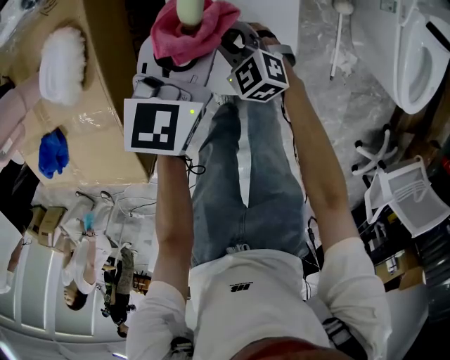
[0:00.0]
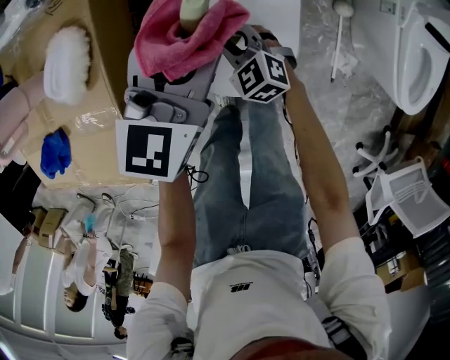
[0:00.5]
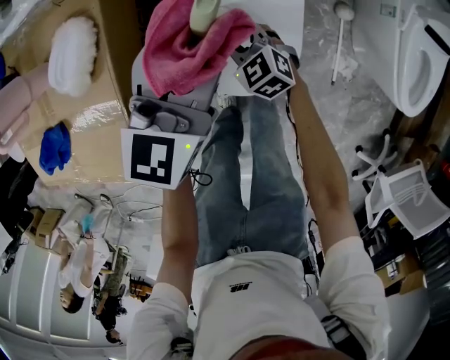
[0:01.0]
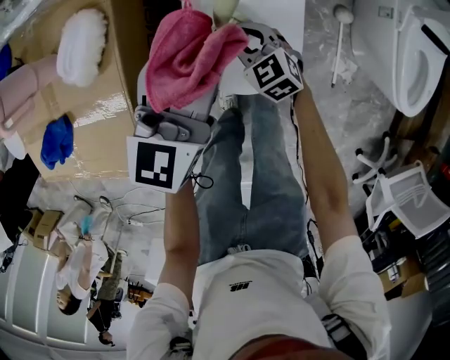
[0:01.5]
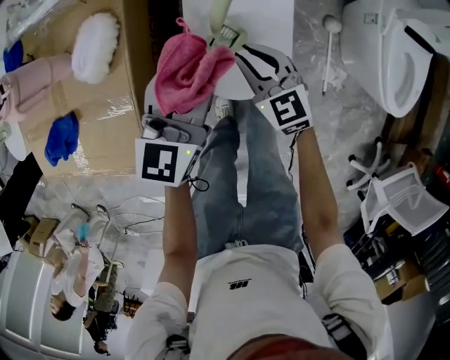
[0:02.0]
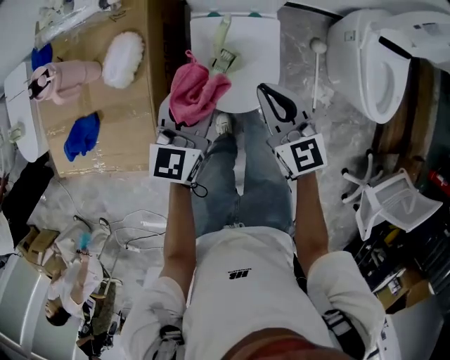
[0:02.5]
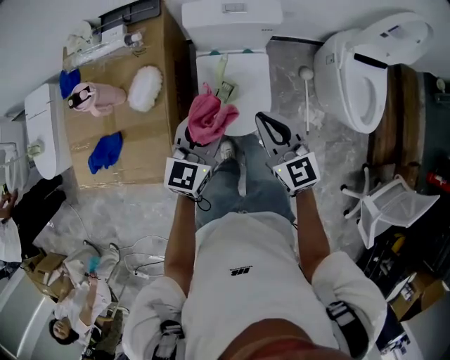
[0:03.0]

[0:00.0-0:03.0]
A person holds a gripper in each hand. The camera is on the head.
0:00.0 to 0:01.5: The left gripper travels upward by some 10 cm.
0:01.5 to 0:03.0: The right gripper moves upward, some 40 cm, and swivels some 30 degrees; the left gripper travels upward and backward by about 20 cm.

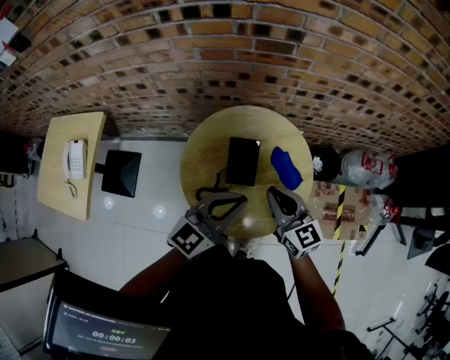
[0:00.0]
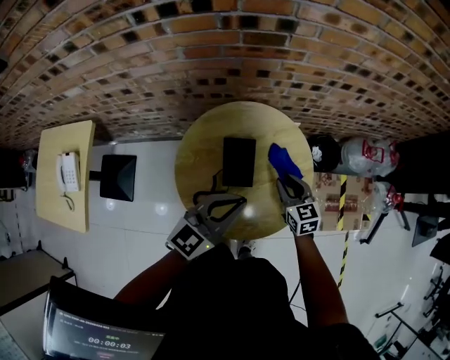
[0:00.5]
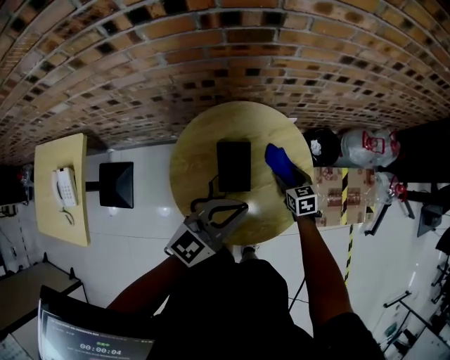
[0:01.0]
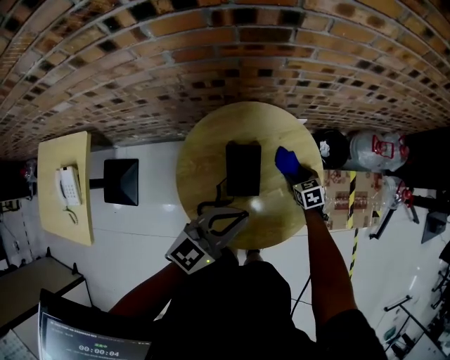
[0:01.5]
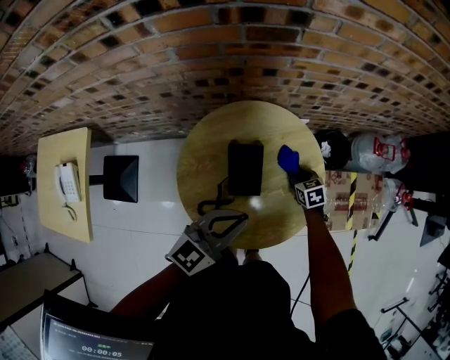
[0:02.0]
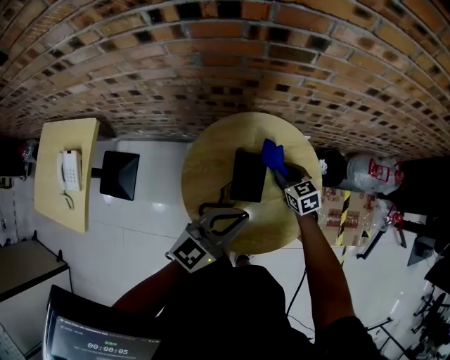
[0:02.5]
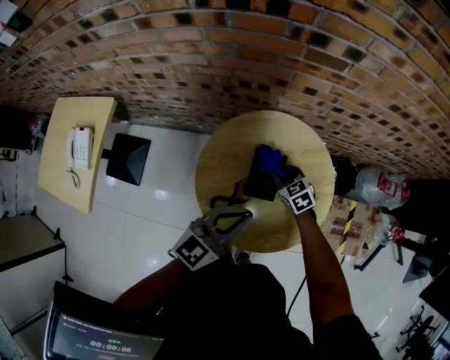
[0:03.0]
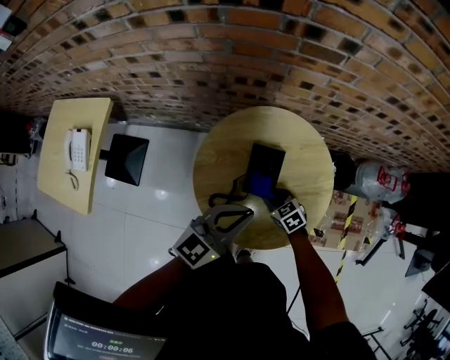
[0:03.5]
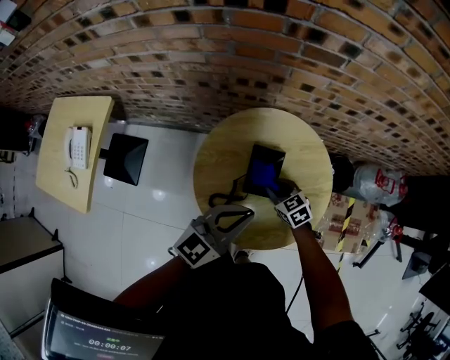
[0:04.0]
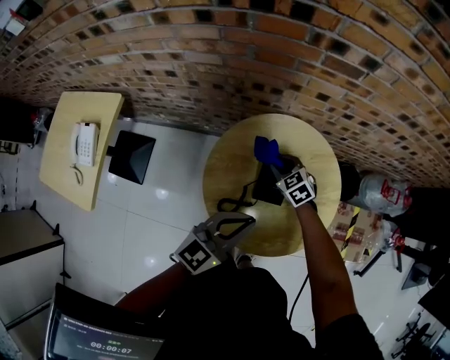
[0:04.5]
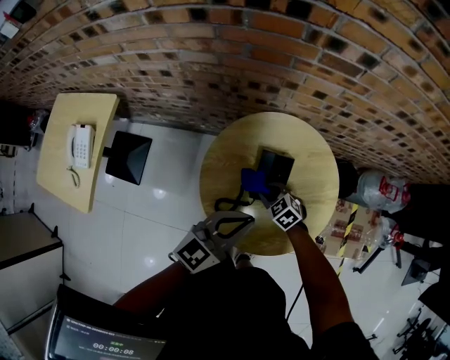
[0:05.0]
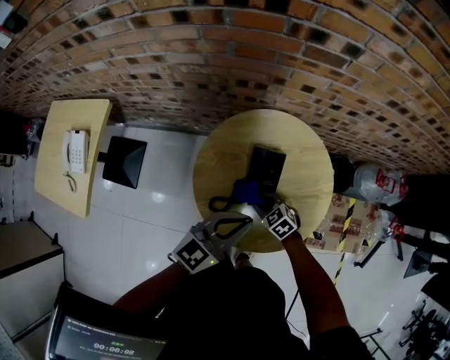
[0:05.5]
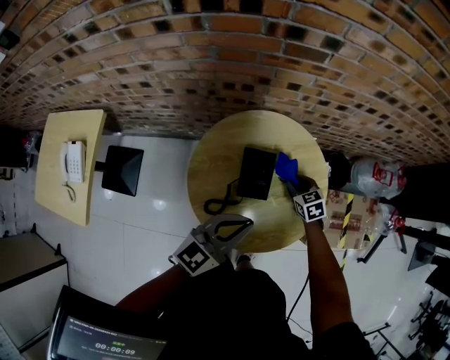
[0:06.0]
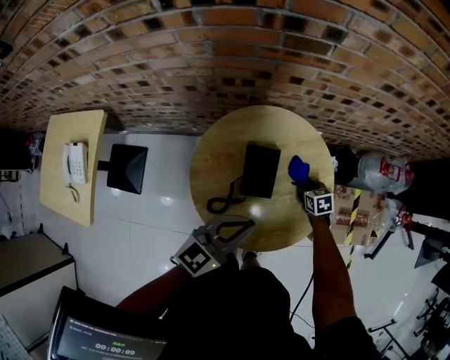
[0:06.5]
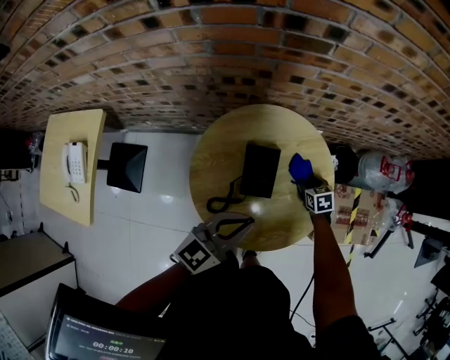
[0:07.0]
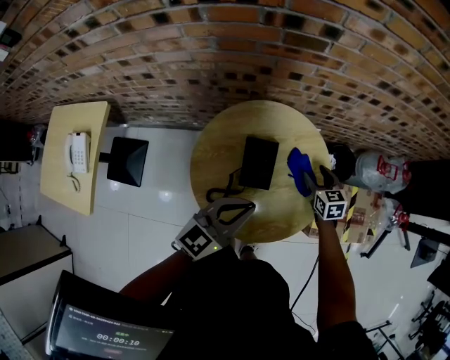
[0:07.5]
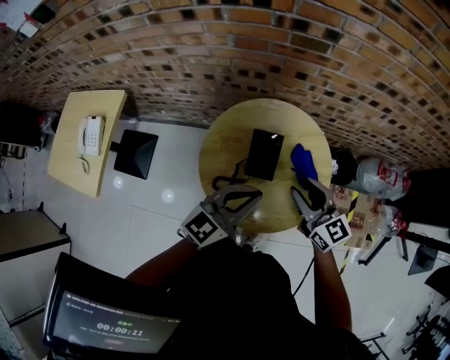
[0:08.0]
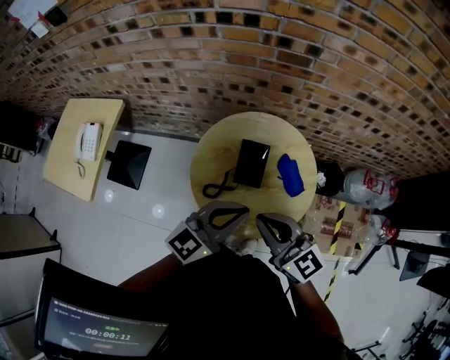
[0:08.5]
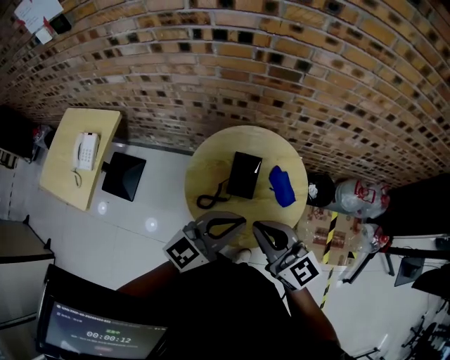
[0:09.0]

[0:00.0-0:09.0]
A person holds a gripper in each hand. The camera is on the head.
0:00.0 to 0:02.0: The right gripper goes some 35 cm downward and forward, points its fingers approximately 40 degrees further downward, and opens, then closes once more. The left gripper moves downward, about 5 cm.
0:02.0 to 0:04.5: The right gripper goes roughly 25 cm to the left and upward, and rotates roughly 40 degrees; the left gripper travels to the left by roughly 10 cm.
0:04.5 to 0:07.0: The right gripper travels to the right and downward by about 25 cm, rotates approximately 40 degrees, and opens its fingers, while the left gripper shifts some 5 cm to the right.
0:07.0 to 0:09.0: The right gripper is displaced upward and backward by about 50 cm, points its fingers roughly 50 degrees further upward, and closes up. Meanwhile the left gripper heads upward and backward, covering some 15 cm.

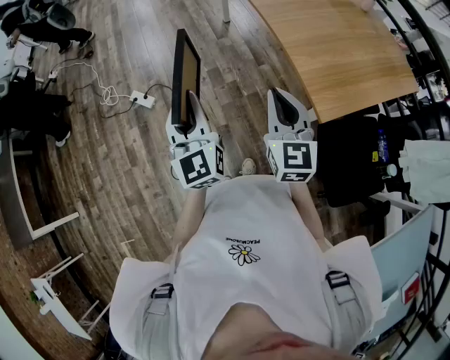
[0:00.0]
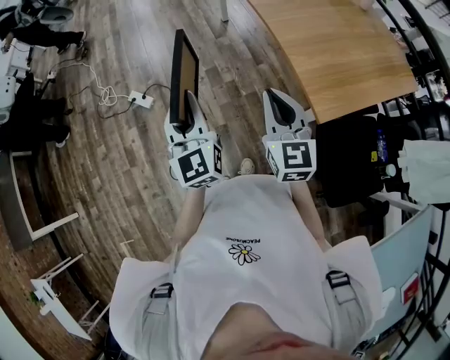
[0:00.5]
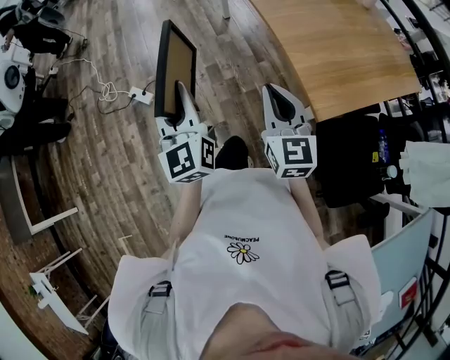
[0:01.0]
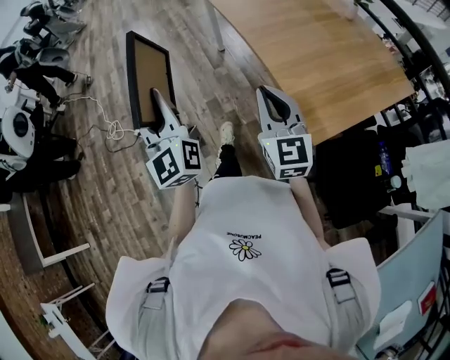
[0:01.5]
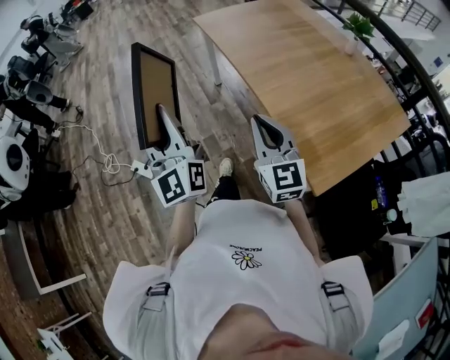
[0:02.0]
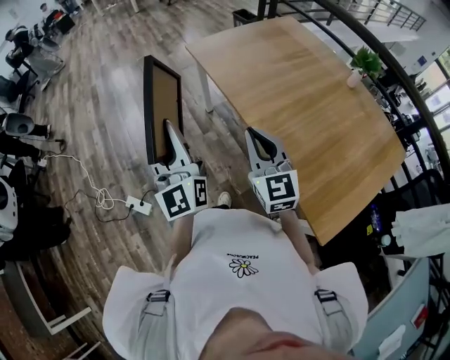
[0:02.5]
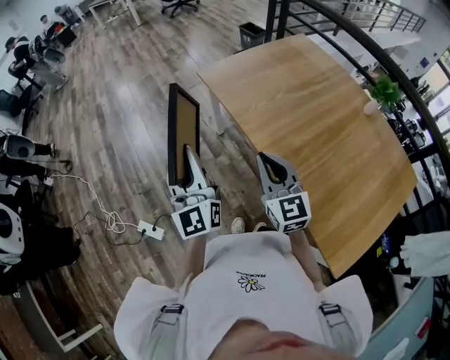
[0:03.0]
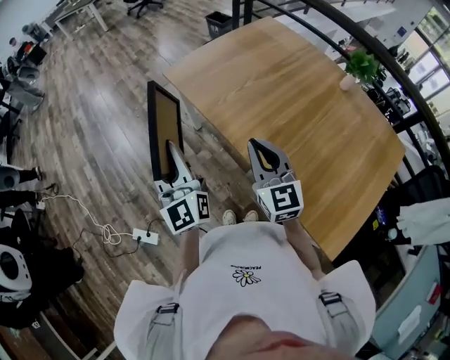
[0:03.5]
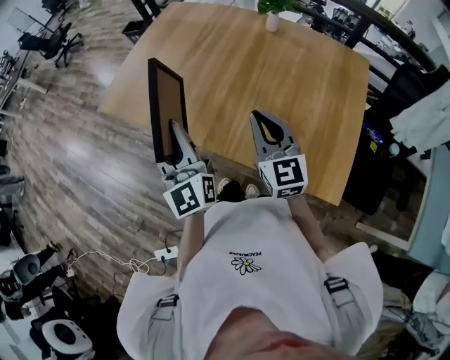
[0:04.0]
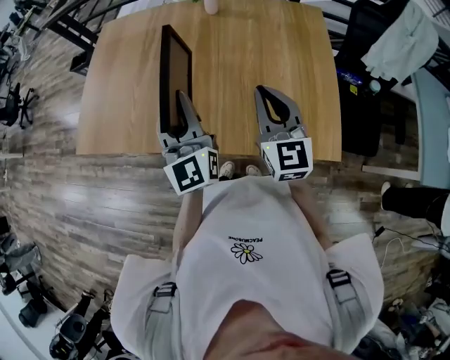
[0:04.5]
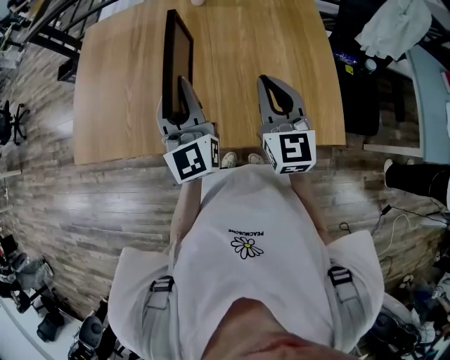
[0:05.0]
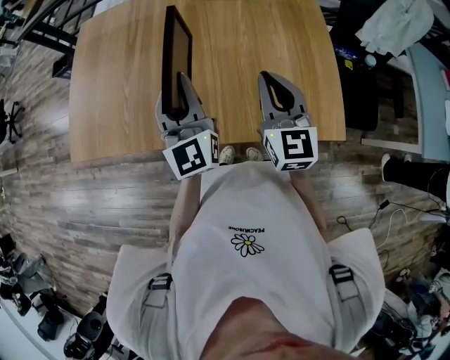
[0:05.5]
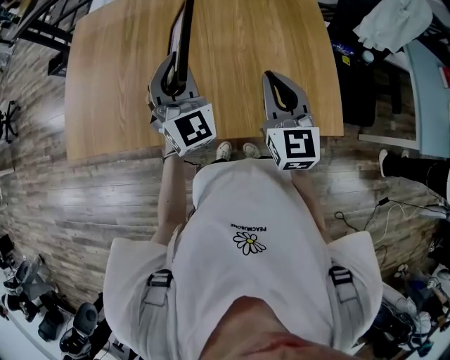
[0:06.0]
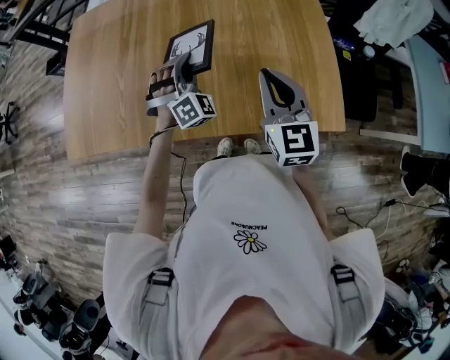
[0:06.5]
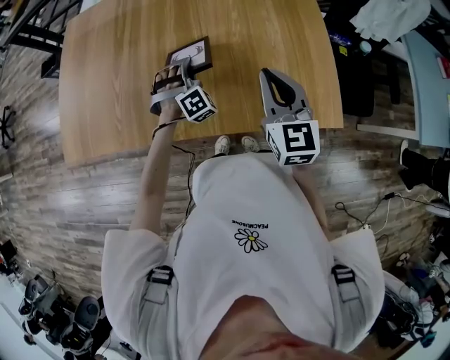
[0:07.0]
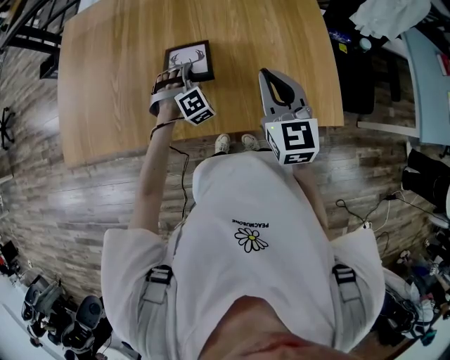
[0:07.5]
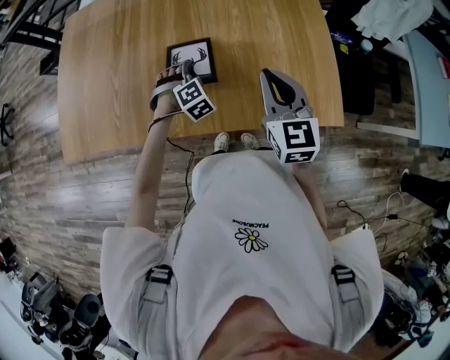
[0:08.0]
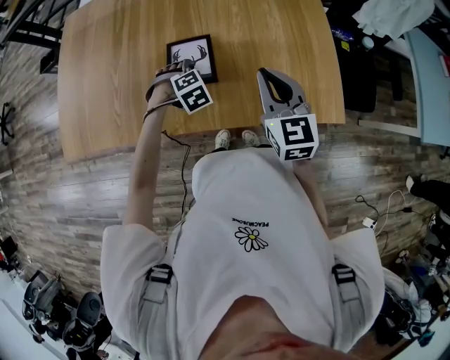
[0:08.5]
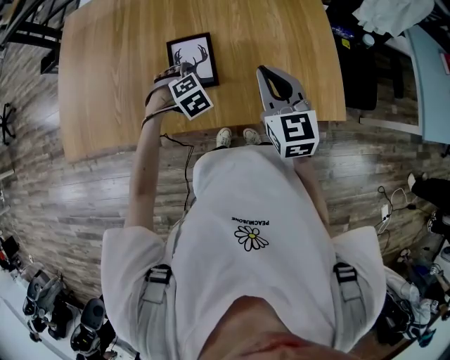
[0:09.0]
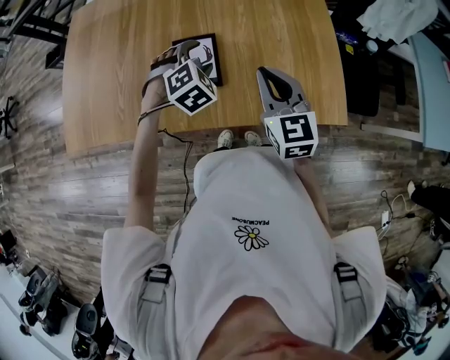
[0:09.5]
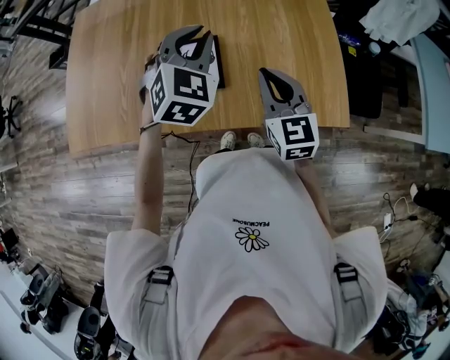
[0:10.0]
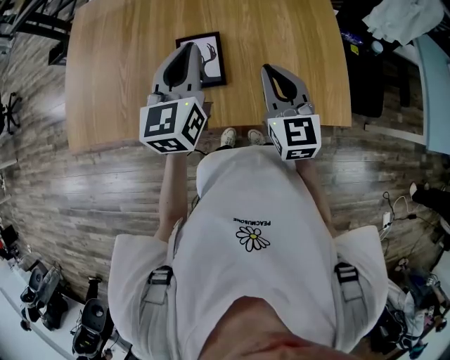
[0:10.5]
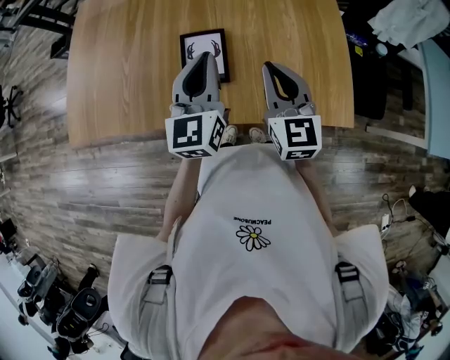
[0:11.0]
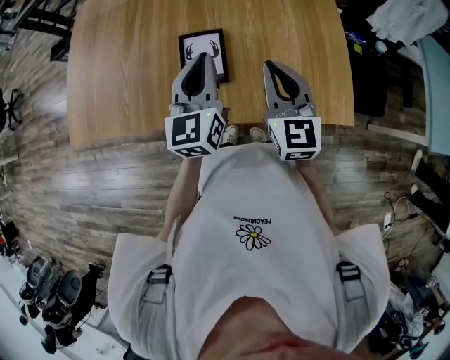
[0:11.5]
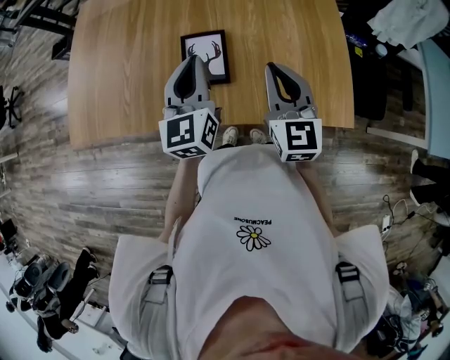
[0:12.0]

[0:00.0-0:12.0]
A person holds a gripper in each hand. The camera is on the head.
0:00.0 to 0:02.0: The right gripper heads forward, covering about 15 cm. The left gripper is displaced forward and upward by about 20 cm, and rotates about 20 degrees.
0:02.0 to 0:04.0: The right gripper changes place by roughly 30 cm, and rotates approximately 40 degrees. Meanwhile the left gripper shifts by roughly 40 cm, and changes its angle by approximately 40 degrees.
0:04.0 to 0:06.0: The right gripper shifts by some 10 cm, and turns by approximately 30 degrees; the left gripper shifts by roughly 20 cm, and swivels approximately 50 degrees.
0:06.0 to 0:08.0: The left gripper goes some 25 cm downward, tilts its fingers approximately 60 degrees downward, and opens up.
0:08.0 to 0:10.0: The left gripper heads upward, covering approximately 25 cm, turns by roughly 40 degrees, and closes up.
0:10.0 to 0:12.0: The left gripper moves backward and to the left, some 10 cm, and twists roughly 40 degrees counterclockwise, seen from behind.

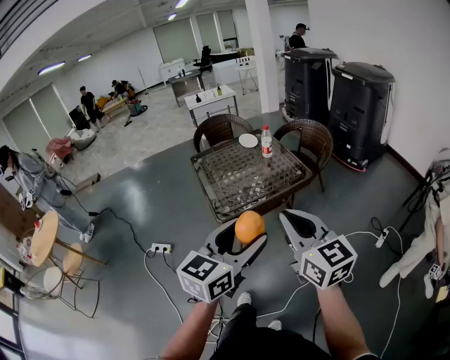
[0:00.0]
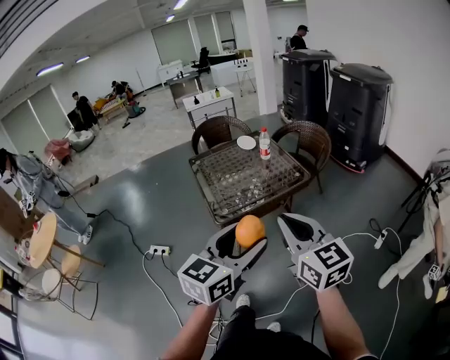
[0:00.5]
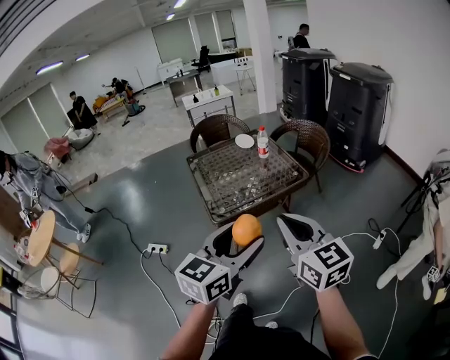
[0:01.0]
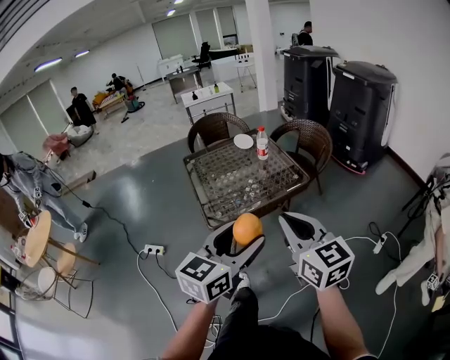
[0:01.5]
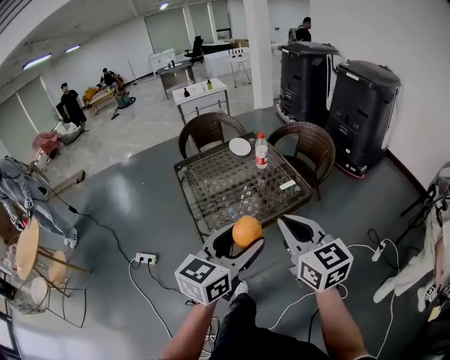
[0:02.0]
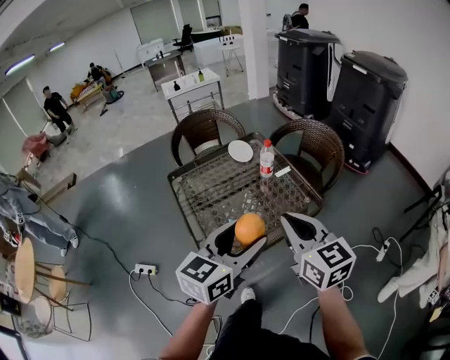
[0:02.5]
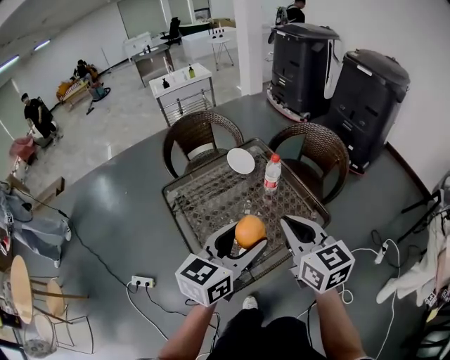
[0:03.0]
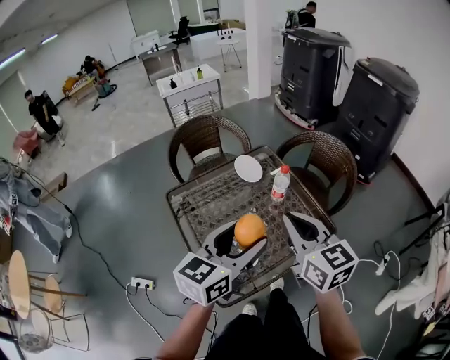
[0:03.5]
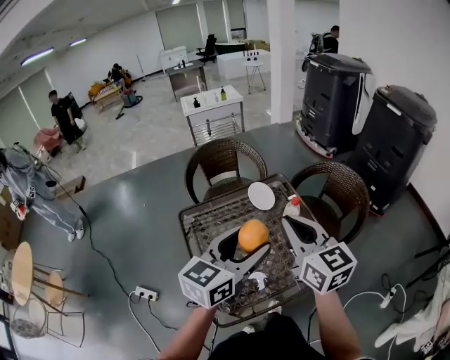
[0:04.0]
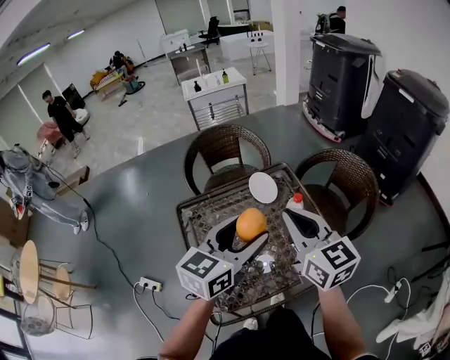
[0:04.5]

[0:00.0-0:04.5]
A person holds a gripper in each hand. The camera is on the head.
0:00.0 to 0:02.0: Both grippers travel together forward, roughly 15 cm.
0:02.0 to 0:04.5: Both grippers travel together forward, approximately 40 cm.
